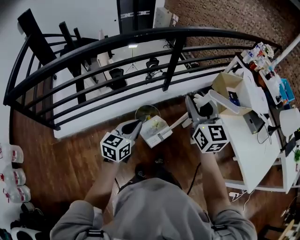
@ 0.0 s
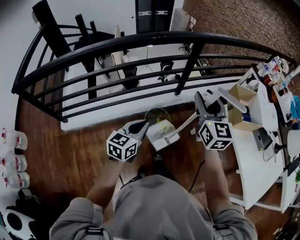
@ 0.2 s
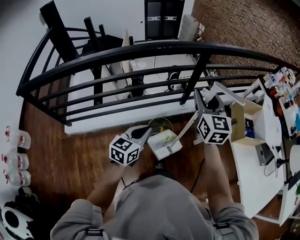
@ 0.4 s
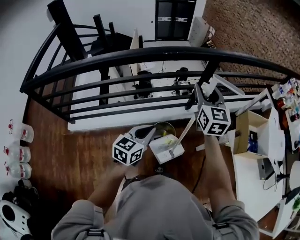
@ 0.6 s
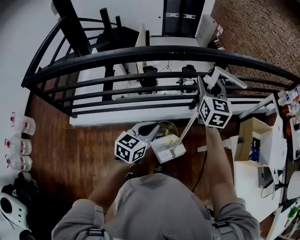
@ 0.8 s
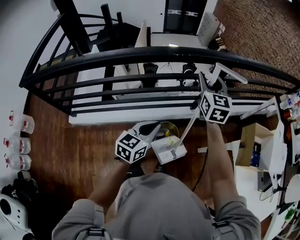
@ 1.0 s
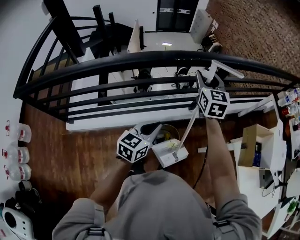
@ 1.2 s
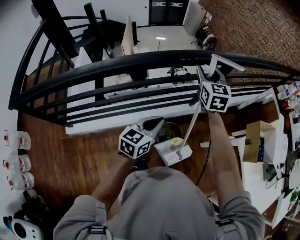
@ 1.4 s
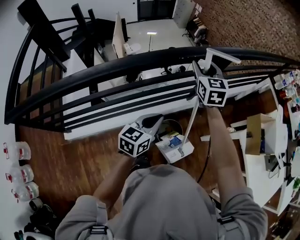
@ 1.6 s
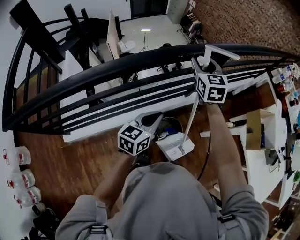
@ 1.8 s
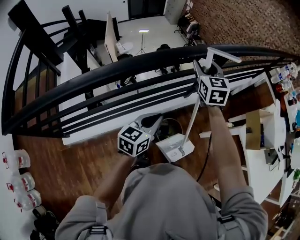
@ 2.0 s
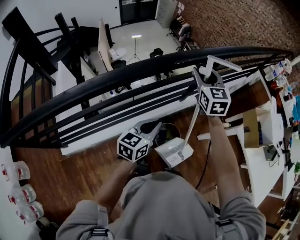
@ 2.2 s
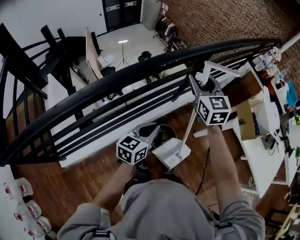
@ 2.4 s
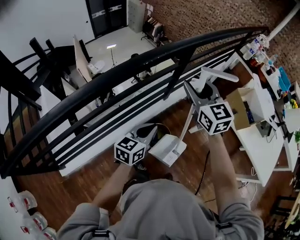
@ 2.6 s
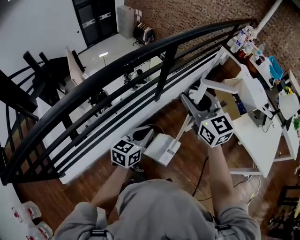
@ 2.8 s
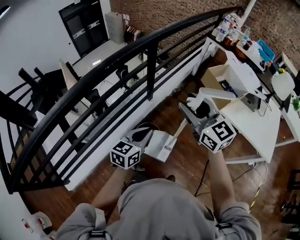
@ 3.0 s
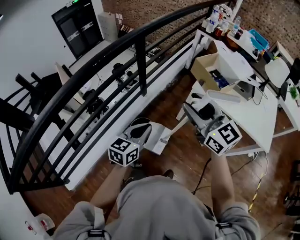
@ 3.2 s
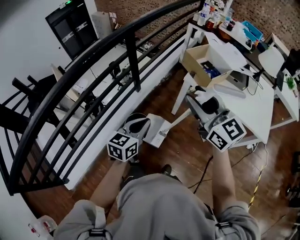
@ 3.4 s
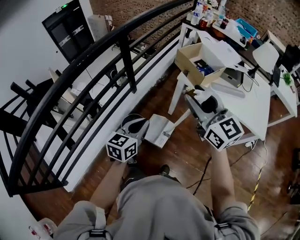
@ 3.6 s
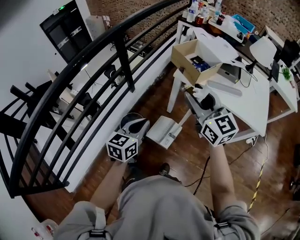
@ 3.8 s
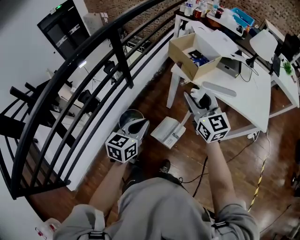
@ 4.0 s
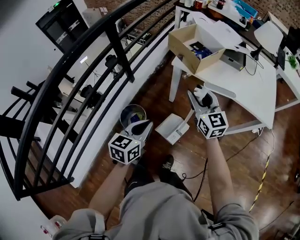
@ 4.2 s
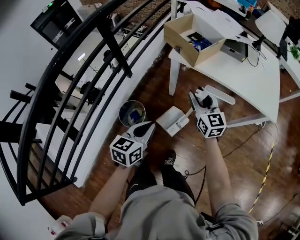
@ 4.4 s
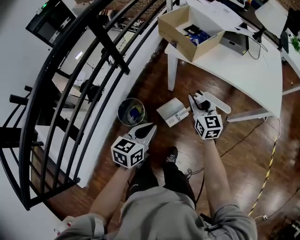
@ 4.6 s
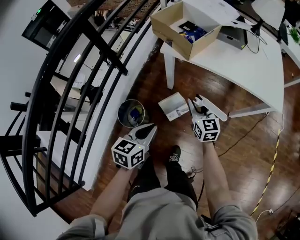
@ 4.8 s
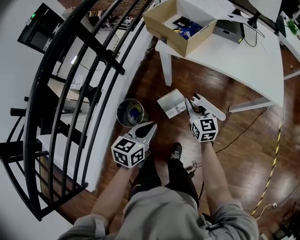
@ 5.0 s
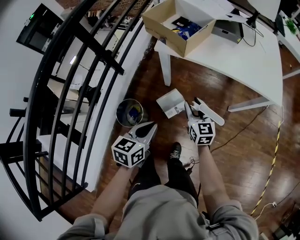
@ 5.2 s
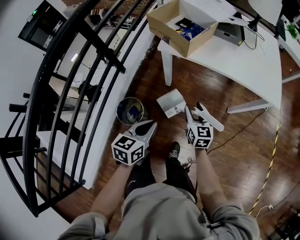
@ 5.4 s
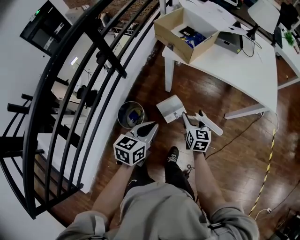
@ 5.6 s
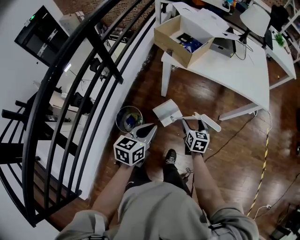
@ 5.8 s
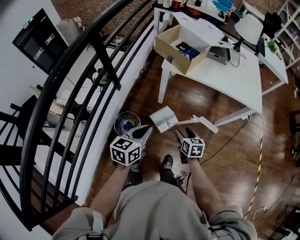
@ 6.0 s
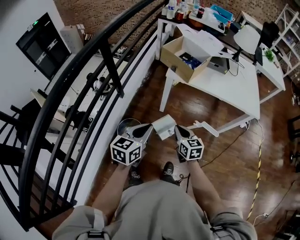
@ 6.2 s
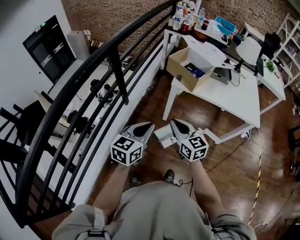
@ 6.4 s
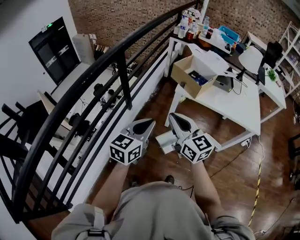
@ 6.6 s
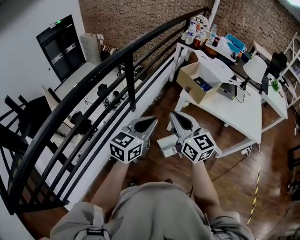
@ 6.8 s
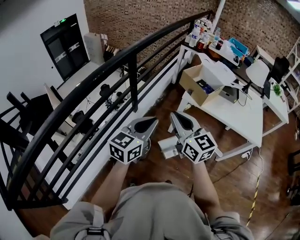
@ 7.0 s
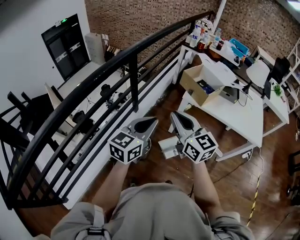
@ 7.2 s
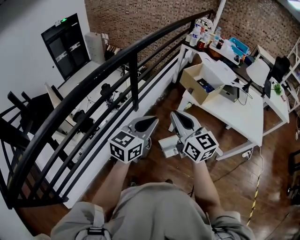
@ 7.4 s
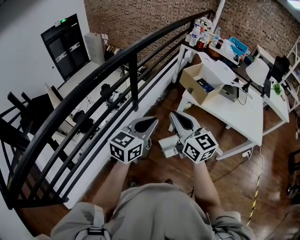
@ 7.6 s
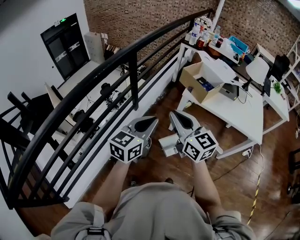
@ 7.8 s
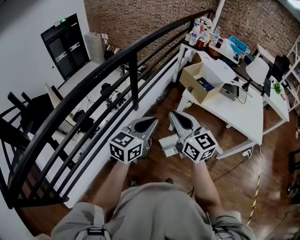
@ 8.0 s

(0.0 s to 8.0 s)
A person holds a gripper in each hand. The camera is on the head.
0.0 s - 1.6 s: The right gripper travels forward and to the left by some 40 cm. The left gripper heads forward and to the left, covering some 30 cm.
1.6 s - 3.2 s: The left gripper goes about 20 cm to the right and backward, and changes its angle by some 30 degrees; the right gripper heads to the right and backward, covering about 40 cm.
3.2 s - 4.8 s: The left gripper moves to the right and downward, approximately 20 cm; the right gripper is displaced downward and to the right by roughly 40 cm, and turns by about 40 degrees.
4.8 s - 6.4 s: The left gripper moves upward and to the left, approximately 20 cm. Meanwhile the right gripper travels to the left, upward and backward by about 25 cm, and closes its fingers.
6.4 s - 8.0 s: The left gripper moves upward, roughly 10 cm. Meanwhile the right gripper is displaced upward and to the left by some 15 cm.

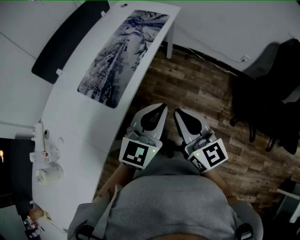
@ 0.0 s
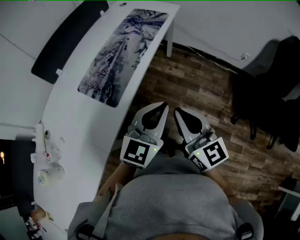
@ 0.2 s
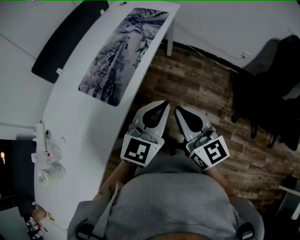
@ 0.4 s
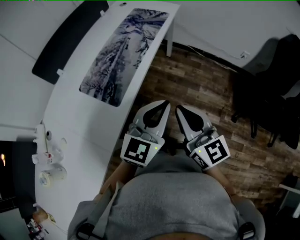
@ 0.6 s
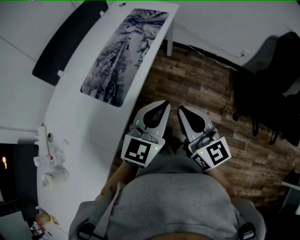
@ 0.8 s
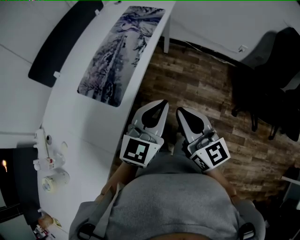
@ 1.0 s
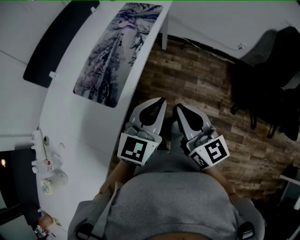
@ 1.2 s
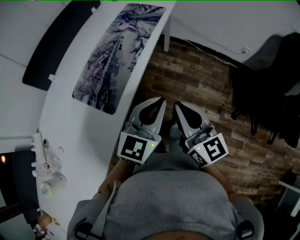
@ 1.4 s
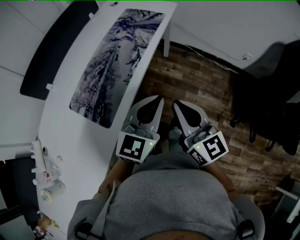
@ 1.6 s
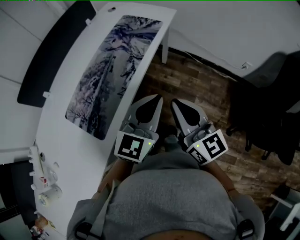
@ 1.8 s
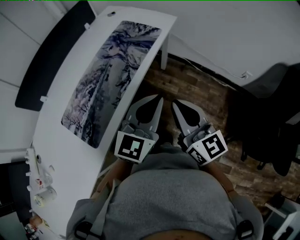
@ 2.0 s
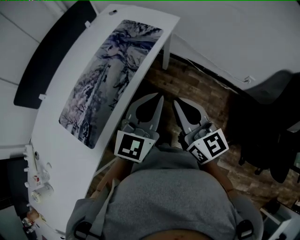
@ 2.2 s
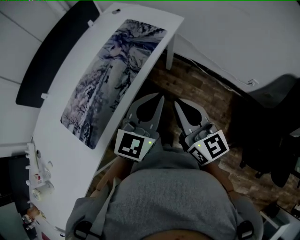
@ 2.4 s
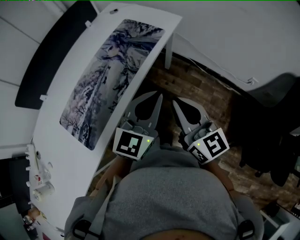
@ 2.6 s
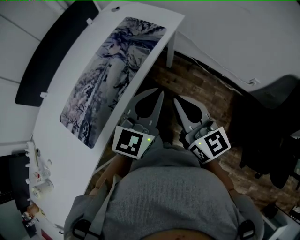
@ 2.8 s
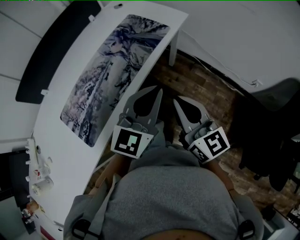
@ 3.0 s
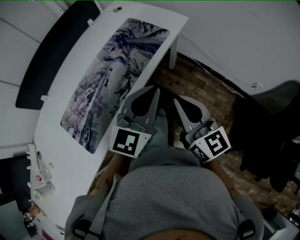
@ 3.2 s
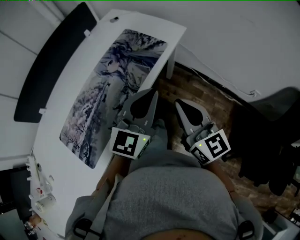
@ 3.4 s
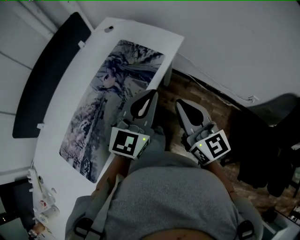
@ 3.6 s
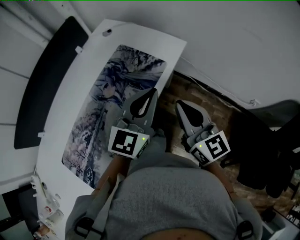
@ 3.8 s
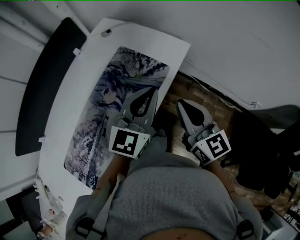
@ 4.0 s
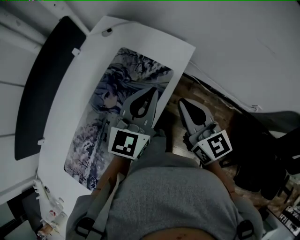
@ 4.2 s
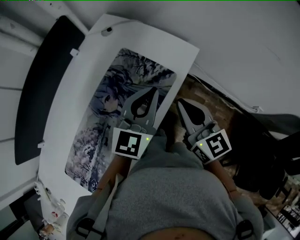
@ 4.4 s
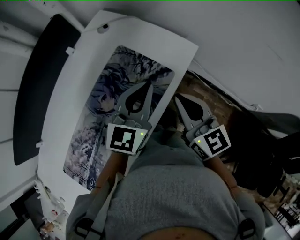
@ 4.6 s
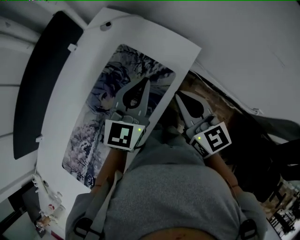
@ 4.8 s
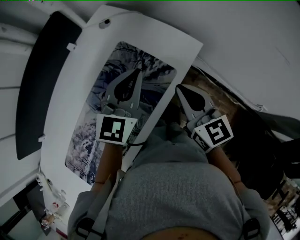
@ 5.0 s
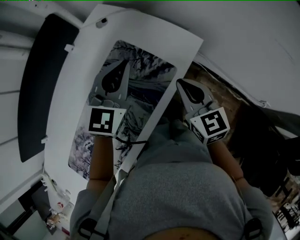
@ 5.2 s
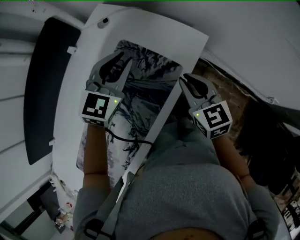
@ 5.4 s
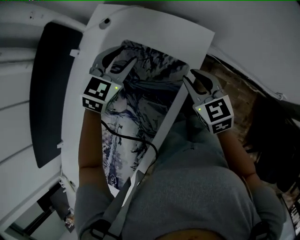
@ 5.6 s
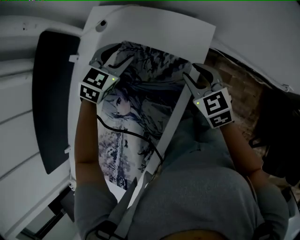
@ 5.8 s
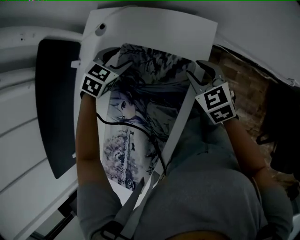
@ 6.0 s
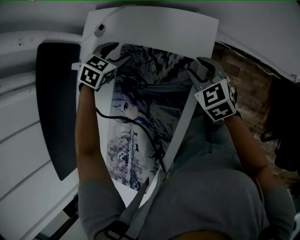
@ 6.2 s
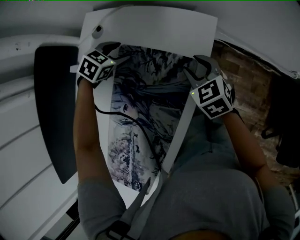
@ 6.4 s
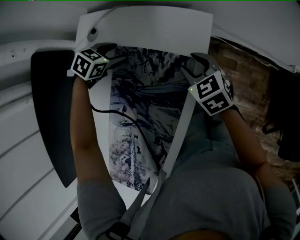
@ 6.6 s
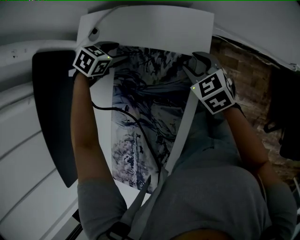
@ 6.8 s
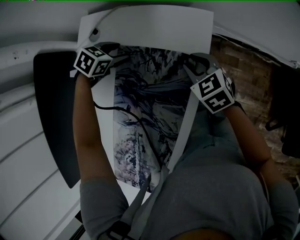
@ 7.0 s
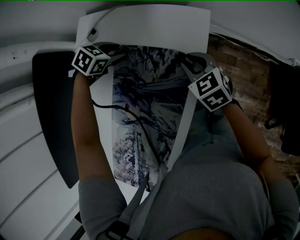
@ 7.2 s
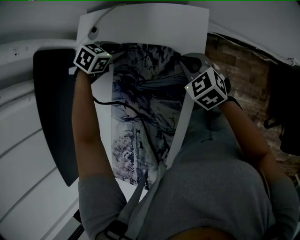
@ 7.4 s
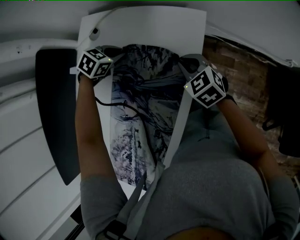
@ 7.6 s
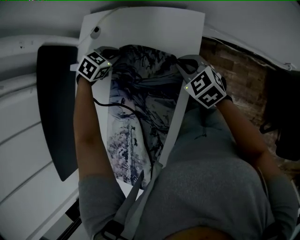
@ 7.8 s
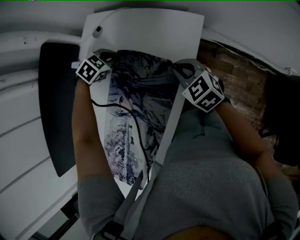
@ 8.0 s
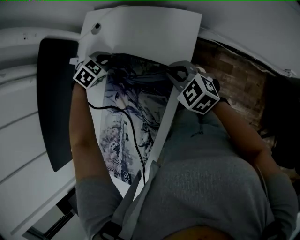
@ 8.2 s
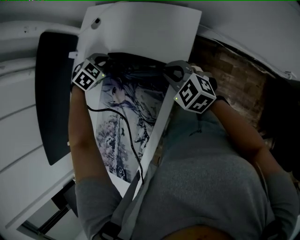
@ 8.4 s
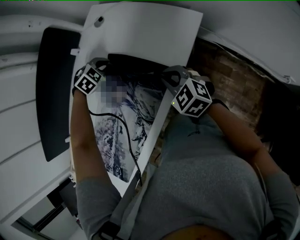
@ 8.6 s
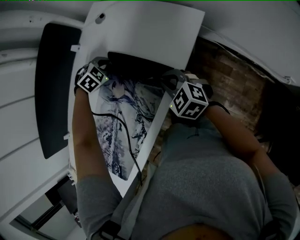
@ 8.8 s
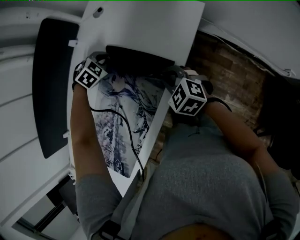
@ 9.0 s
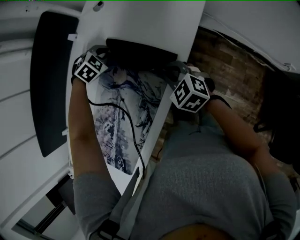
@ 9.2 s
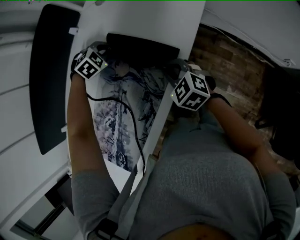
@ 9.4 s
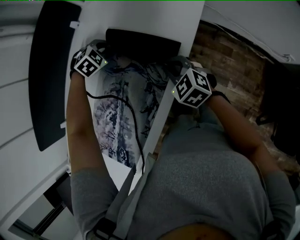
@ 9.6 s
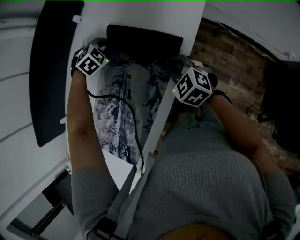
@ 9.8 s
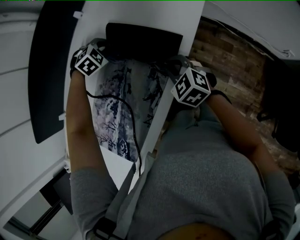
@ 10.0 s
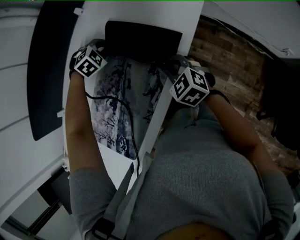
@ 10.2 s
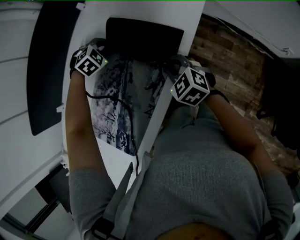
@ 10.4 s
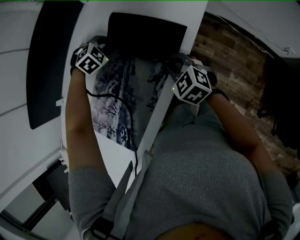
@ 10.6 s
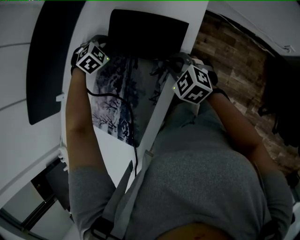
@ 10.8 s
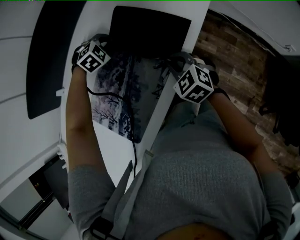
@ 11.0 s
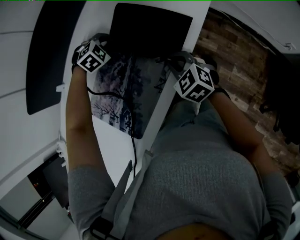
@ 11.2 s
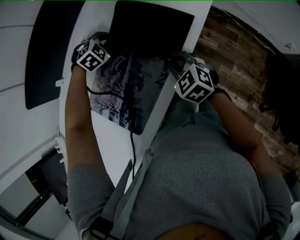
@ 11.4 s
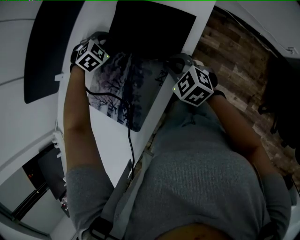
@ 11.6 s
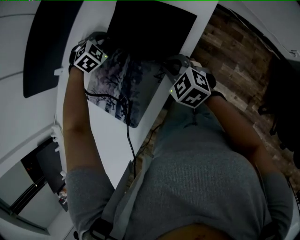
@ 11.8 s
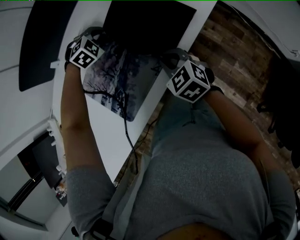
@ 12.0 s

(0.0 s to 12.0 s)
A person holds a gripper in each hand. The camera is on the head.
0.0 s - 1.6 s: The two grippers go approximately 15 cm forward.
1.6 s - 3.0 s: Both grippers travel together forward and to the right, approximately 20 cm.
3.0 s - 4.4 s: Both grippers move forward, approximately 30 cm.
4.4 s - 6.0 s: The right gripper goes approximately 20 cm downward and forward, rotates some 30 degrees, and opens up. The left gripper is displaced forward, downward and to the left by roughly 30 cm, angles its fingers downward, by roughly 50 degrees, and opens.
6.0 s - 7.6 s: The left gripper closes up. The right gripper closes its fingers.
7.6 s - 9.0 s: The left gripper changes place by roughly 15 cm, and turns by roughly 20 degrees, while the right gripper shifts by about 15 cm, and changes its angle by roughly 30 degrees.
9.0 s - 10.4 s: The two grippers go about 15 cm backward and to the left.
10.4 s - 12.0 s: The two grippers go approximately 15 cm to the left and backward.

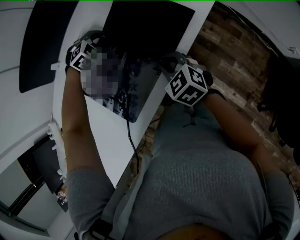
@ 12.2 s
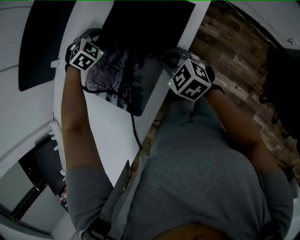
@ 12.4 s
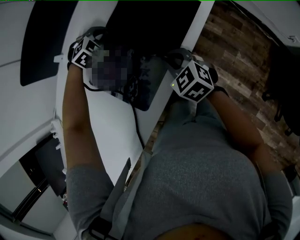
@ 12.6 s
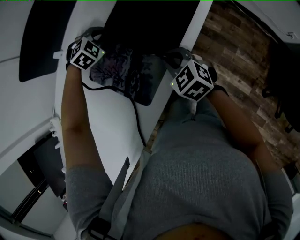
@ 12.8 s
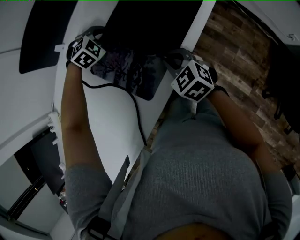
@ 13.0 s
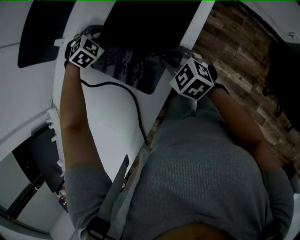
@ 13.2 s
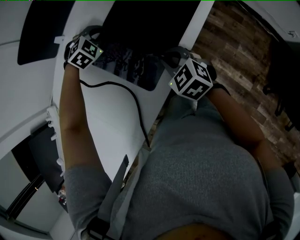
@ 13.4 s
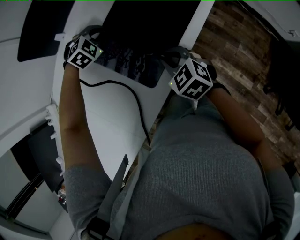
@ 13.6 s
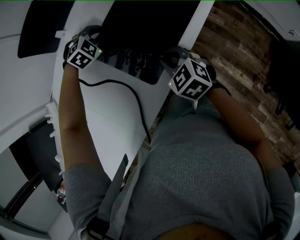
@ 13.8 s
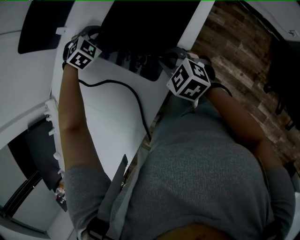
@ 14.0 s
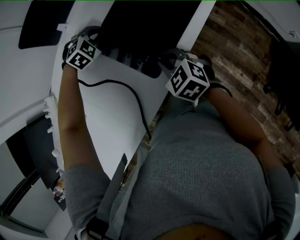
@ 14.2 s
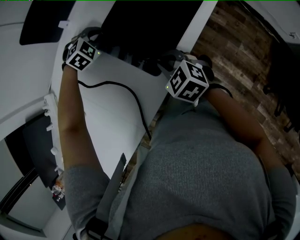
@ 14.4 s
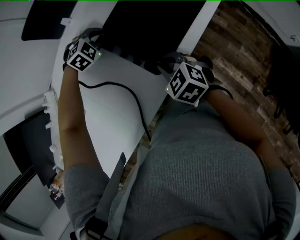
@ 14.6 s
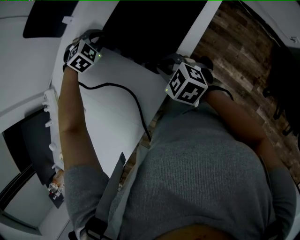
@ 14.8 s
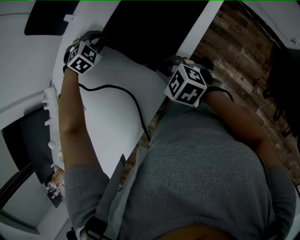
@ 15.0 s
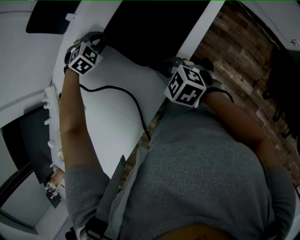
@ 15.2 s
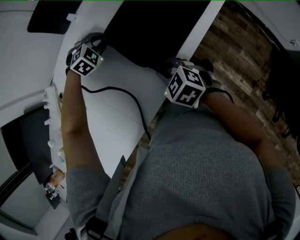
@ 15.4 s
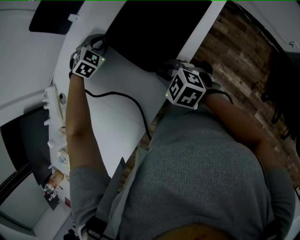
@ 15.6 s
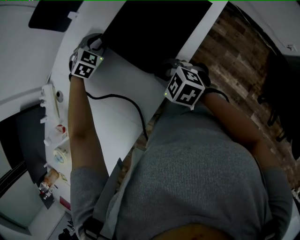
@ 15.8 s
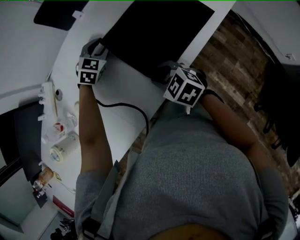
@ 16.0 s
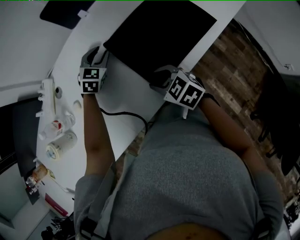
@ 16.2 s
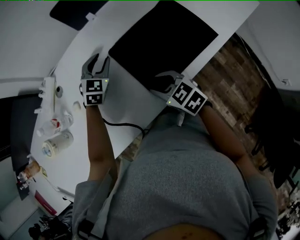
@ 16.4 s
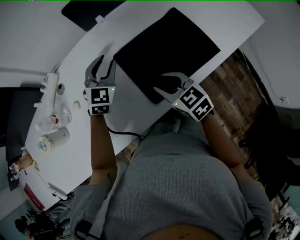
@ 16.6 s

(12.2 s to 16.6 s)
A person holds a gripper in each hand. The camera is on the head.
12.2 s - 13.6 s: Both grippers travel together to the left and backward, approximately 15 cm.
13.6 s - 15.2 s: Both grippers move to the left and backward, about 10 cm.
15.2 s - 16.6 s: The left gripper heads upward, covering roughly 15 cm, angles its fingers upward, by some 40 degrees, and opens. The right gripper is displaced upward by some 10 cm, and opens.
